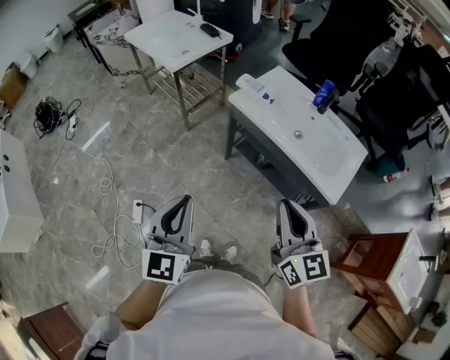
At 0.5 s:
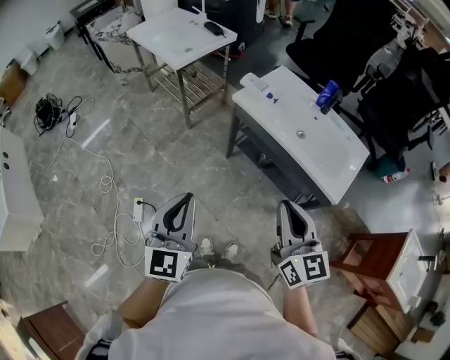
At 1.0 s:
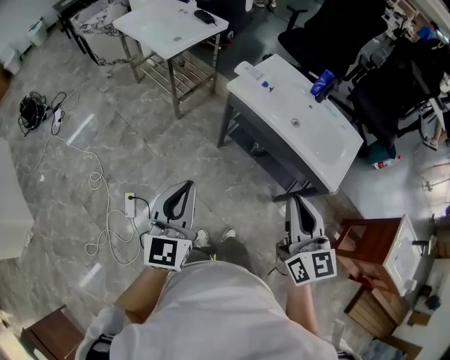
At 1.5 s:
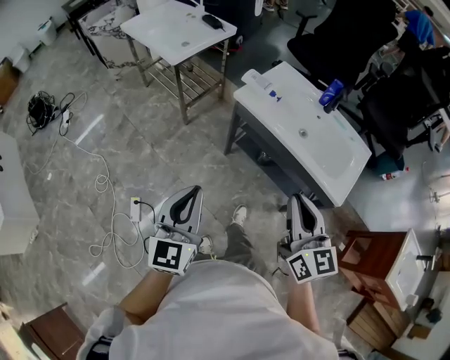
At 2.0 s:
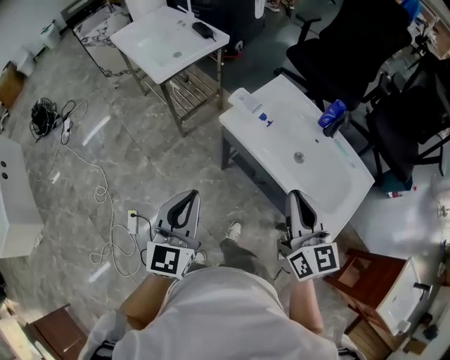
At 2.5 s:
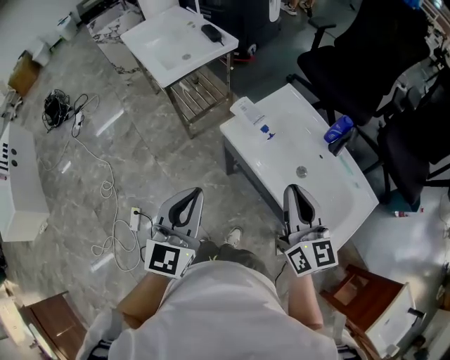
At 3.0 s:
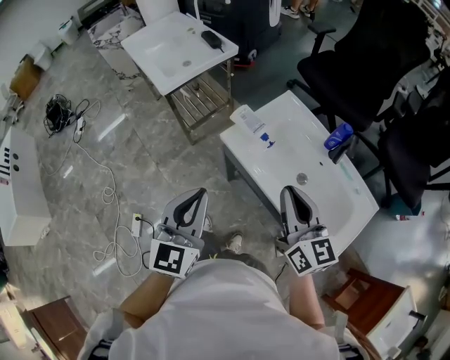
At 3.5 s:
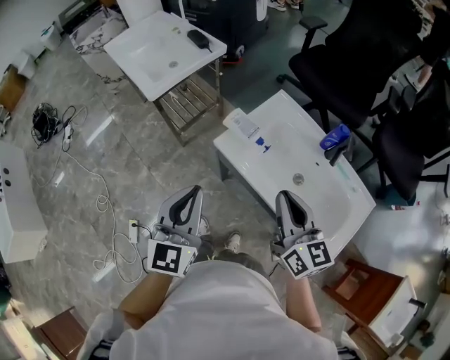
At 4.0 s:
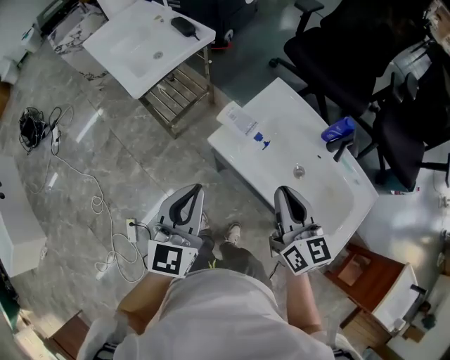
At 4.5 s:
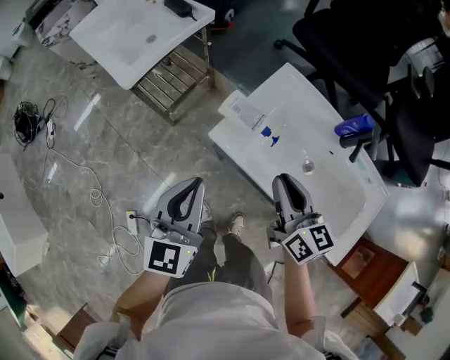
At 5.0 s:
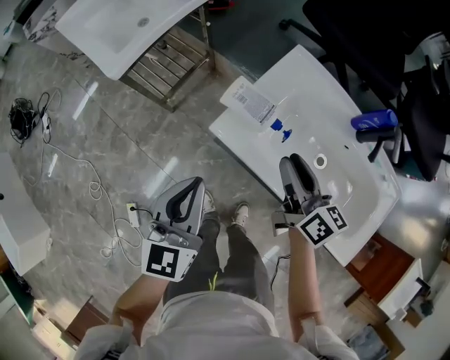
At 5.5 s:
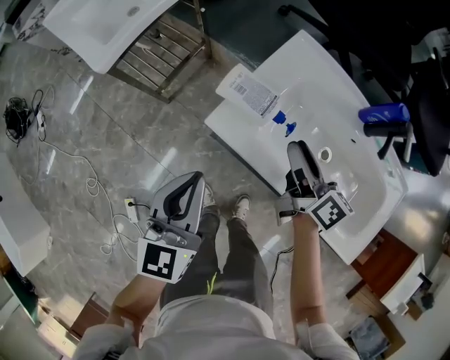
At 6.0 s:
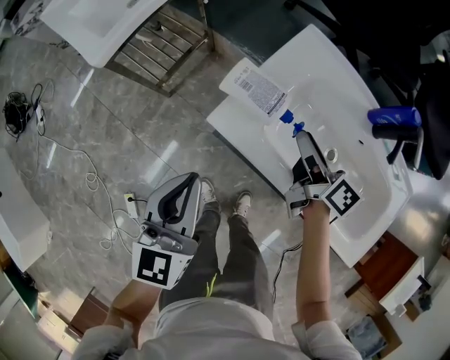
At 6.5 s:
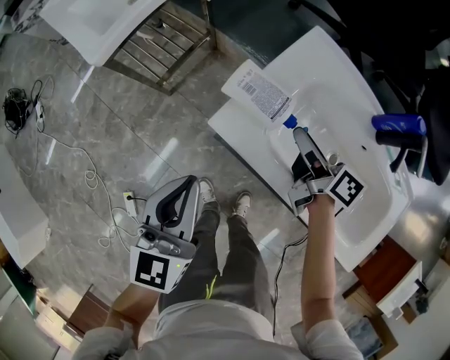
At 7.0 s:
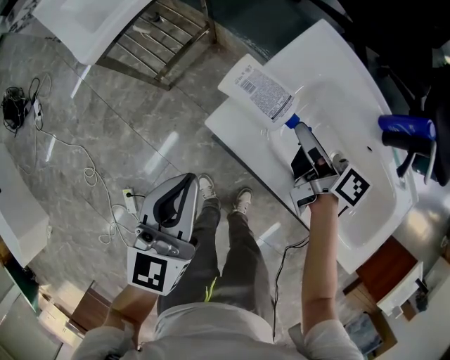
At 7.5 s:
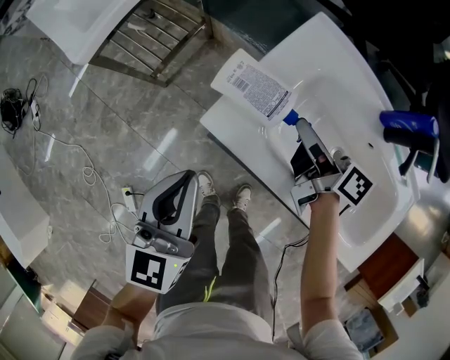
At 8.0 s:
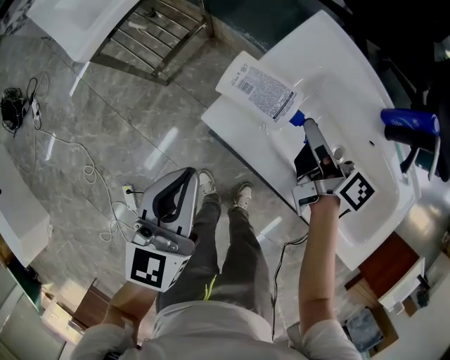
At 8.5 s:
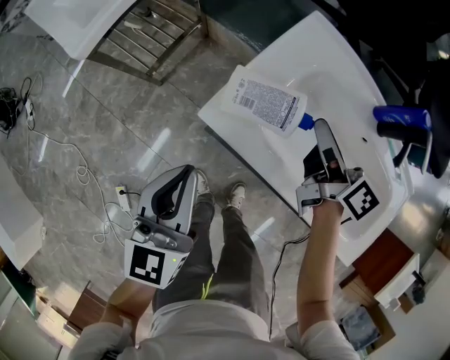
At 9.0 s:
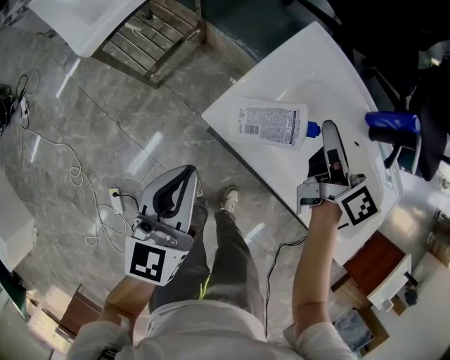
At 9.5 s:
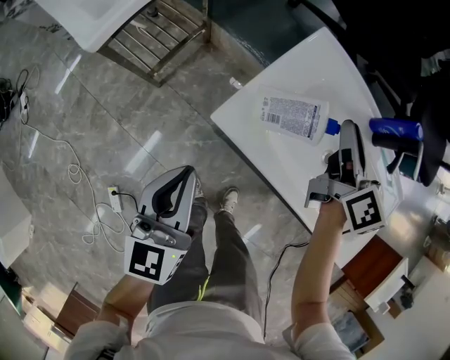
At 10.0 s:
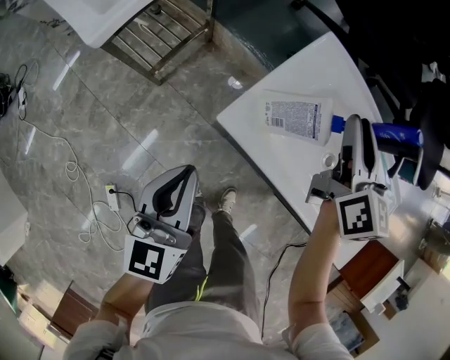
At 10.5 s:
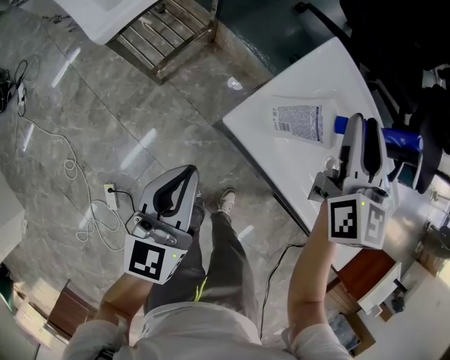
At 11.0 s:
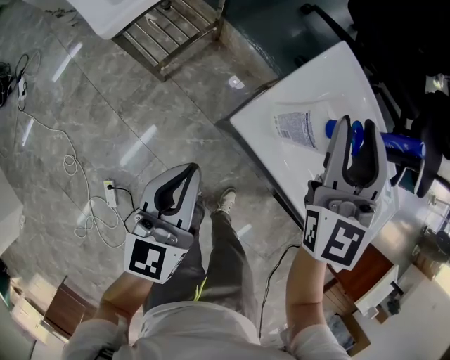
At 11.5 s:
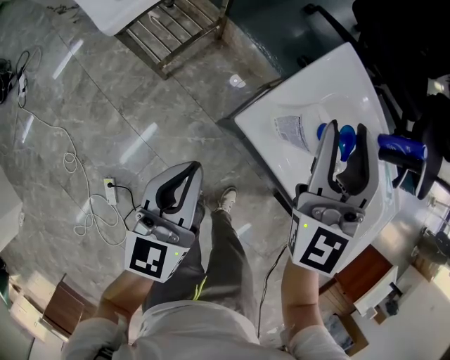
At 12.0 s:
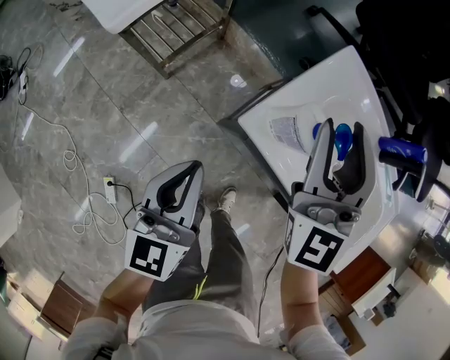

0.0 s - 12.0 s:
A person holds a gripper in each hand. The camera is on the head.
0.0 s - 2.0 s: Both grippers move forward, approximately 25 cm.
2.0 s - 4.0 s: The two grippers go approximately 20 cm forward.
4.0 s - 6.0 s: The two grippers go some 25 cm downward and forward. The right gripper changes its angle by roughly 40 degrees, and opens its fingers.
6.0 s - 8.0 s: The grippers make only small movements.
8.0 s - 10.0 s: The right gripper goes roughly 15 cm upward, and rolls counterclockwise, seen from behind, by approximately 50 degrees. Meanwhile the left gripper travels to the left by some 5 cm.
10.0 s - 12.0 s: The right gripper heads to the left, covering approximately 15 cm, and rotates about 40 degrees.

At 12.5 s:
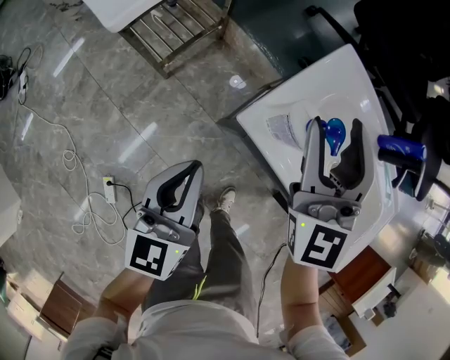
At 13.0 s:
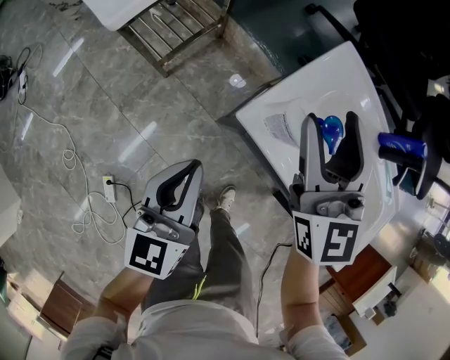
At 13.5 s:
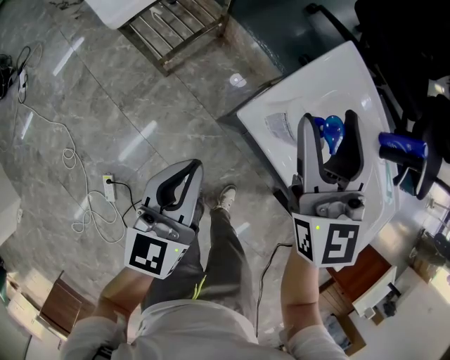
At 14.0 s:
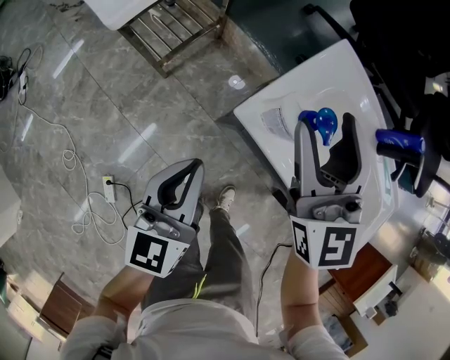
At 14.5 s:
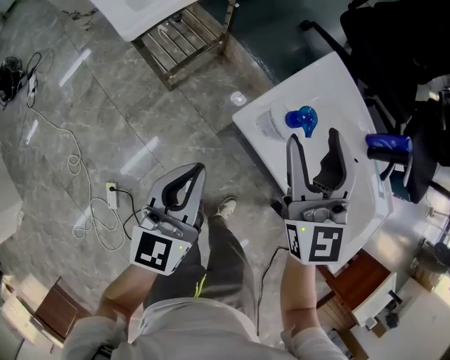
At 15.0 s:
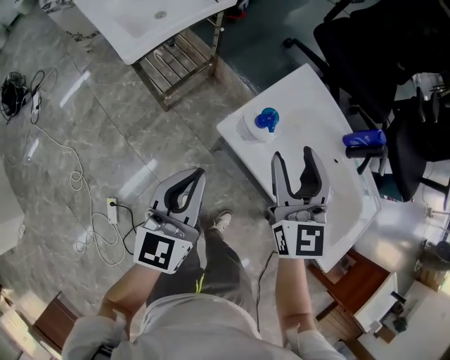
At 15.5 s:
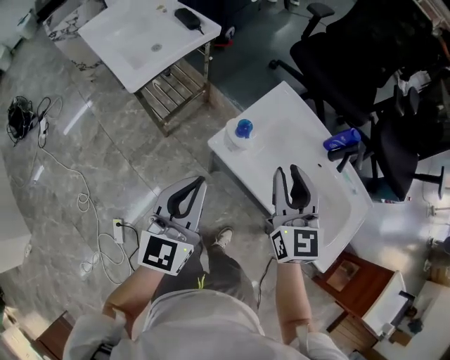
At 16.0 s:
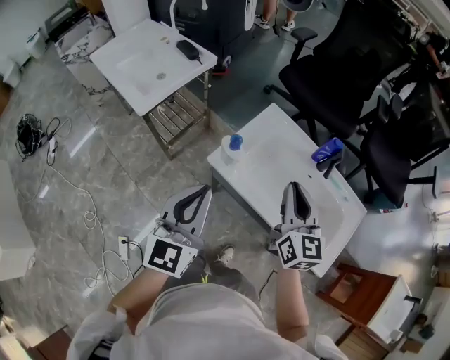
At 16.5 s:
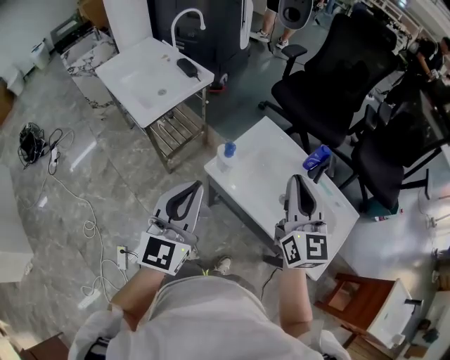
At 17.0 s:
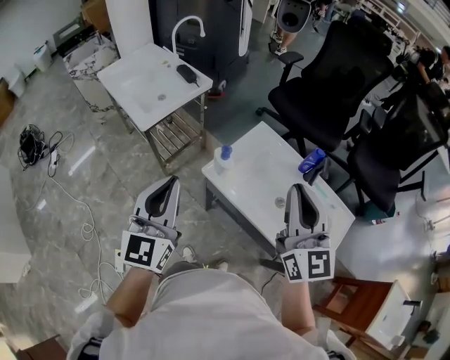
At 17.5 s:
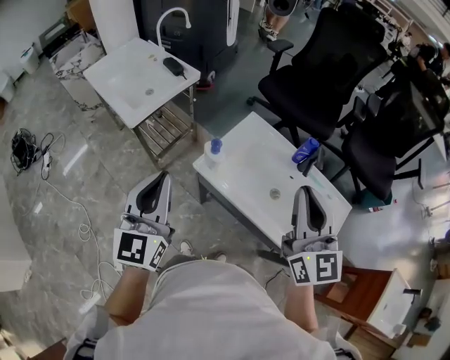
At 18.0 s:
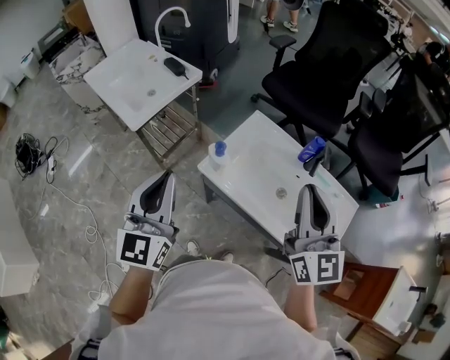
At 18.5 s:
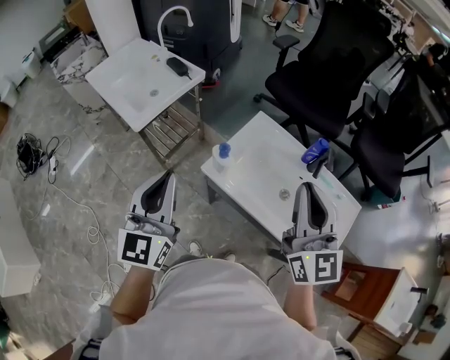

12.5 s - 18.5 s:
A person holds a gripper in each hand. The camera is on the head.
12.5 s - 14.5 s: The right gripper travels backward by approximately 5 cm. Meanwhile the left gripper moves some 5 cm.
14.5 s - 16.5 s: The right gripper shifts about 30 cm upward, to the right and backward, and closes its fingers. Meanwhile the left gripper moves upward, some 30 cm, and rotates some 20 degrees.
16.5 s - 18.5 s: The left gripper ends up some 5 cm from where it was.

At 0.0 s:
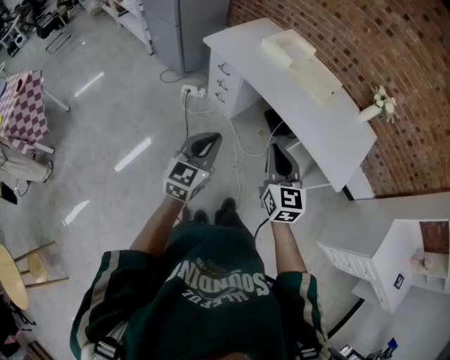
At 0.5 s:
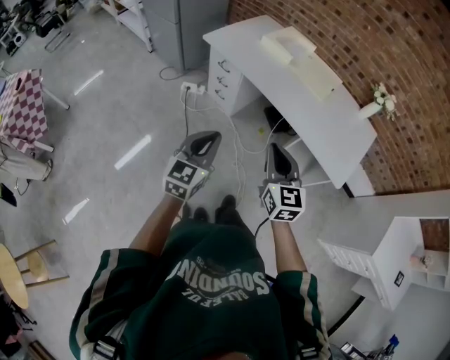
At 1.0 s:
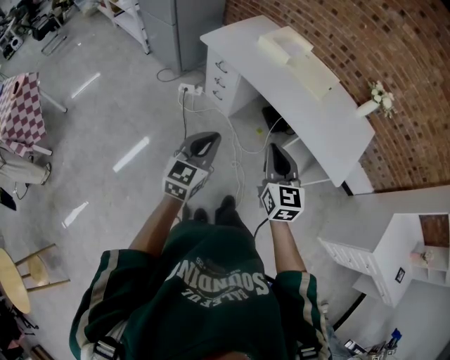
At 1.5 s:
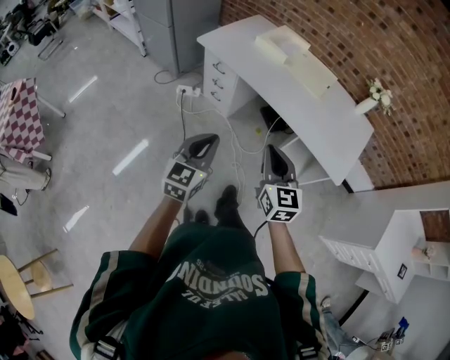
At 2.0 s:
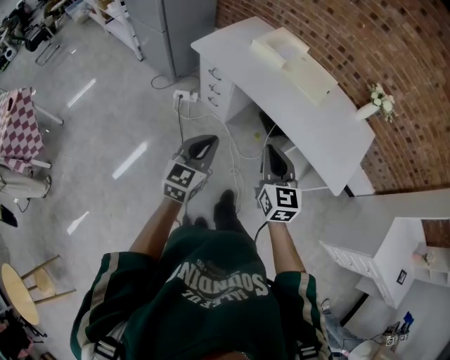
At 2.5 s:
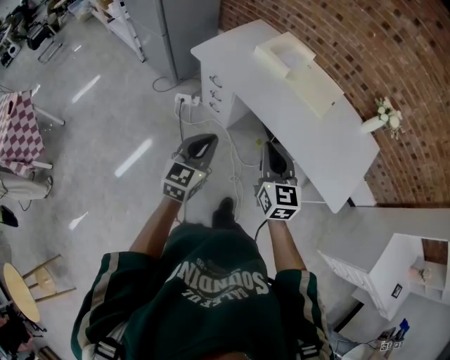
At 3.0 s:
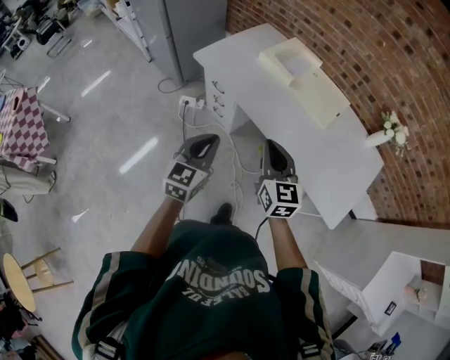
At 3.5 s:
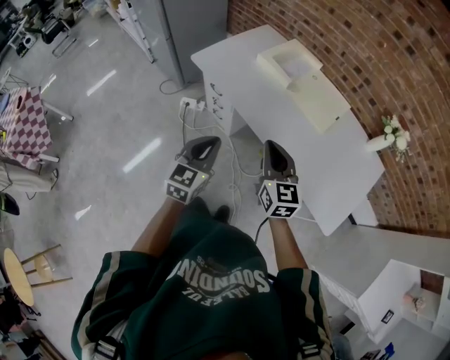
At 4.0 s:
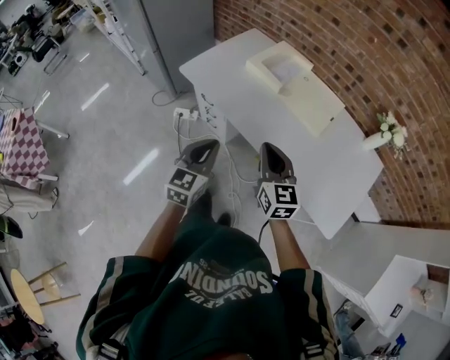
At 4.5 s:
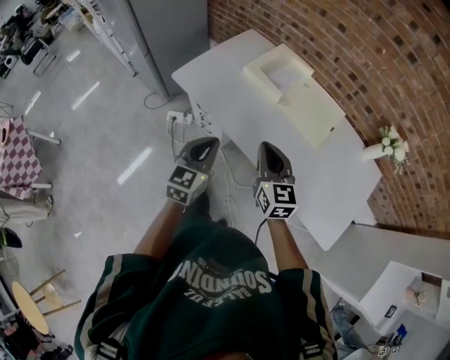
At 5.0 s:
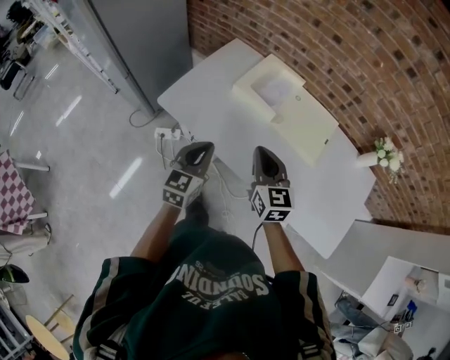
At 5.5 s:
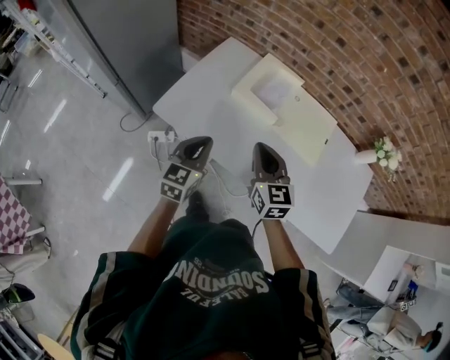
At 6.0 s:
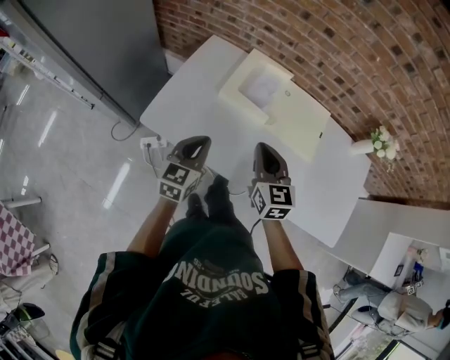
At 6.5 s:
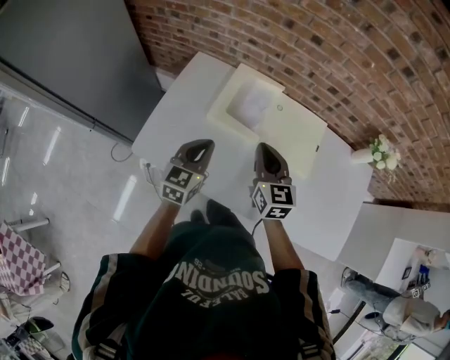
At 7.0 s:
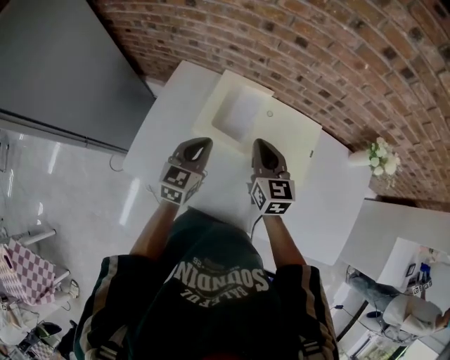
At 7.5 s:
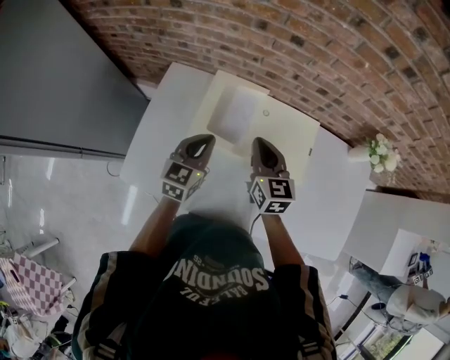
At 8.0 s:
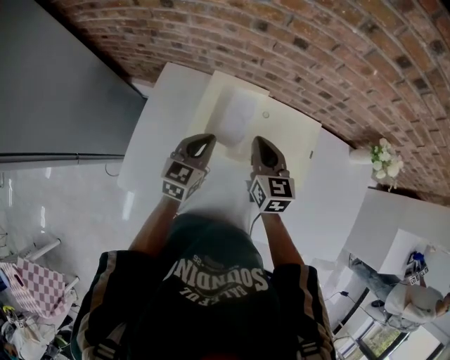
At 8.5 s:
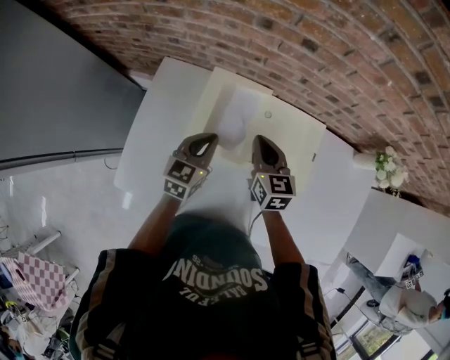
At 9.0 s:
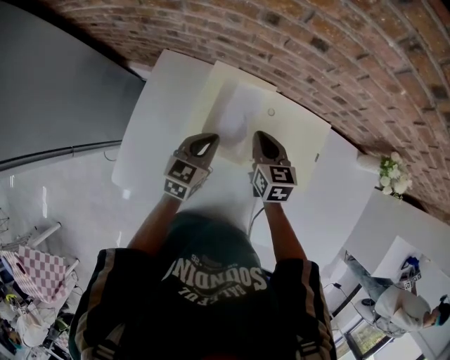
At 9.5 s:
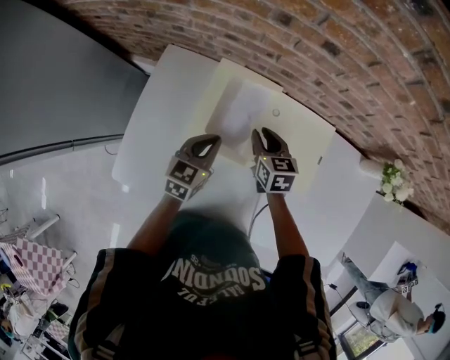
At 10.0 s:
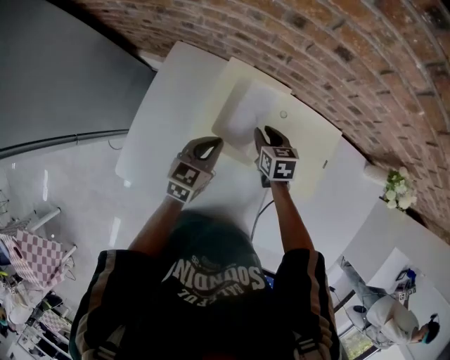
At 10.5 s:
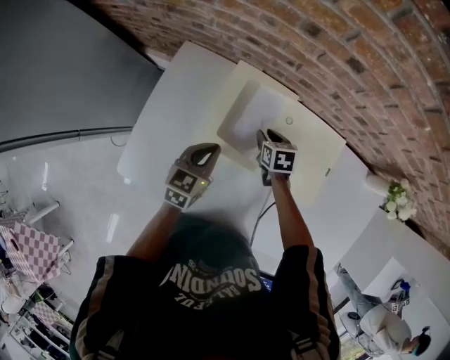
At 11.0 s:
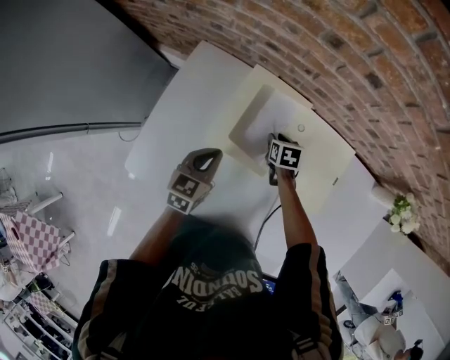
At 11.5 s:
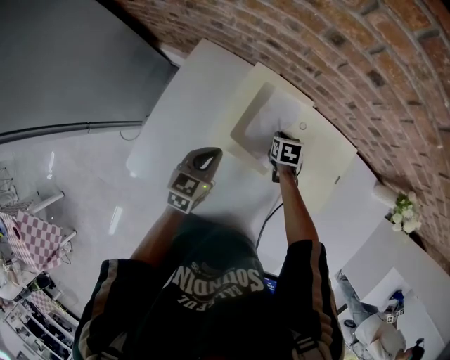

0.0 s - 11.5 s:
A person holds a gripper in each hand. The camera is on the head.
0.0 s - 2.0 s: Both grippers move forward, about 5 cm.
2.0 s - 4.0 s: The grippers both shift forward by roughly 20 cm.
4.0 s - 6.0 s: Both grippers move forward, about 30 cm. The right gripper changes its angle by roughly 20 degrees.
6.0 s - 7.5 s: Both grippers travel together forward, roughly 20 cm.
7.5 s - 9.5 s: The left gripper moves downward and forward, about 10 cm. The right gripper travels downward and forward by roughly 20 cm, swivels approximately 20 degrees, and opens up.
9.5 s - 11.5 s: The right gripper travels downward by approximately 15 cm, and rotates approximately 30 degrees. The left gripper is displaced to the left by approximately 5 cm.
